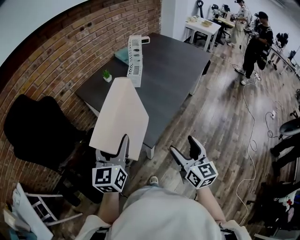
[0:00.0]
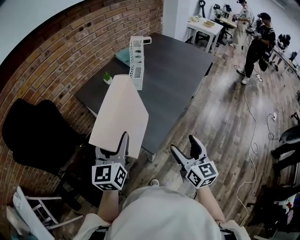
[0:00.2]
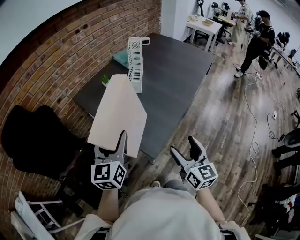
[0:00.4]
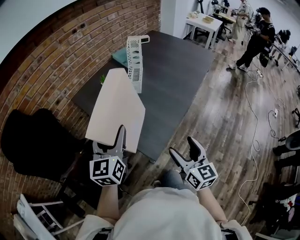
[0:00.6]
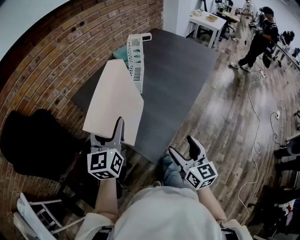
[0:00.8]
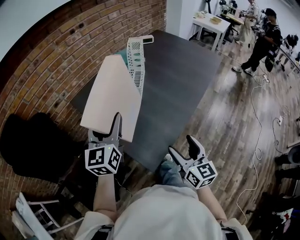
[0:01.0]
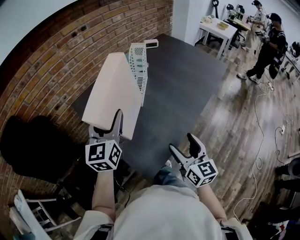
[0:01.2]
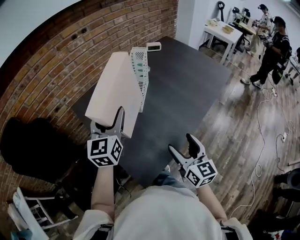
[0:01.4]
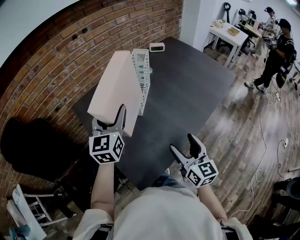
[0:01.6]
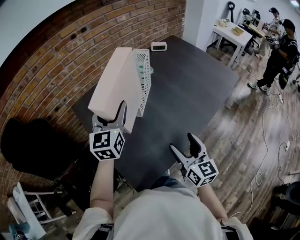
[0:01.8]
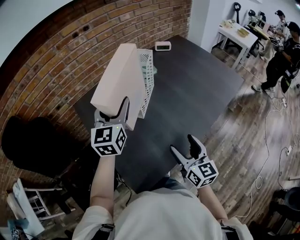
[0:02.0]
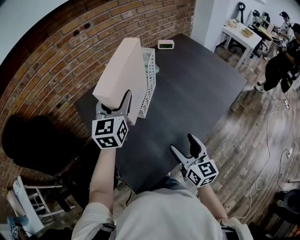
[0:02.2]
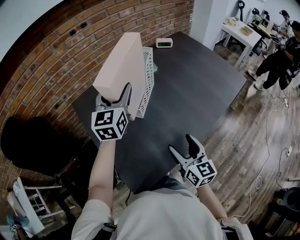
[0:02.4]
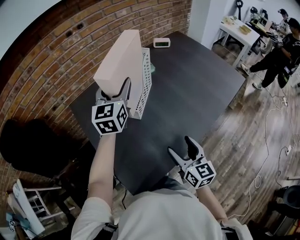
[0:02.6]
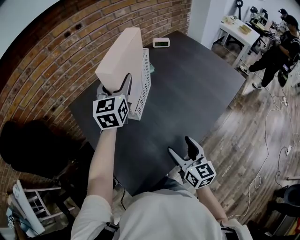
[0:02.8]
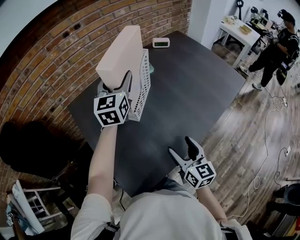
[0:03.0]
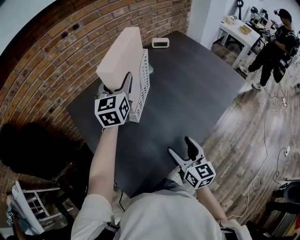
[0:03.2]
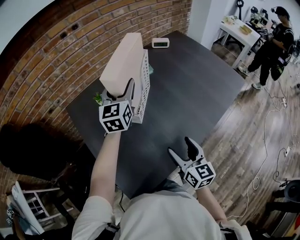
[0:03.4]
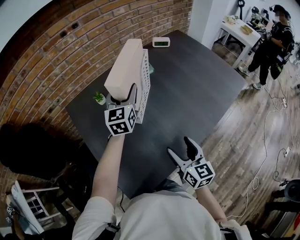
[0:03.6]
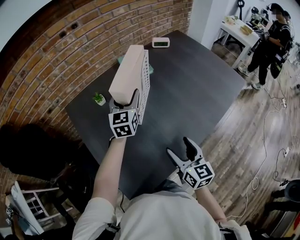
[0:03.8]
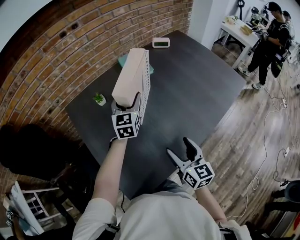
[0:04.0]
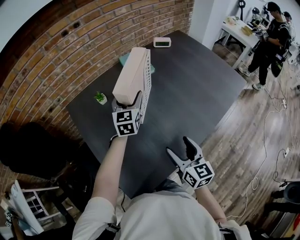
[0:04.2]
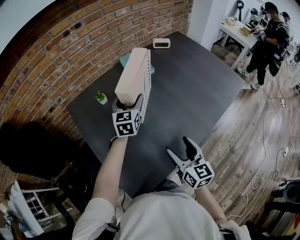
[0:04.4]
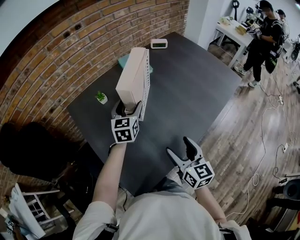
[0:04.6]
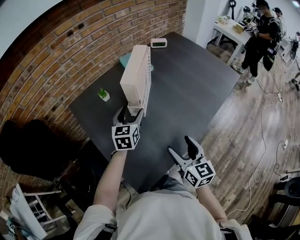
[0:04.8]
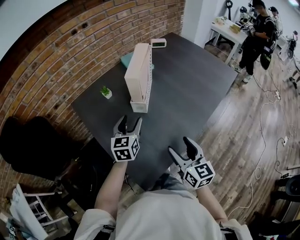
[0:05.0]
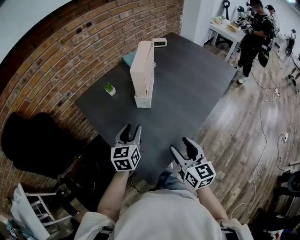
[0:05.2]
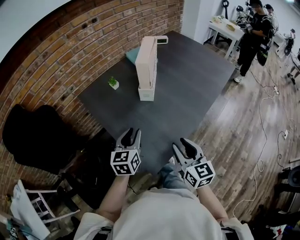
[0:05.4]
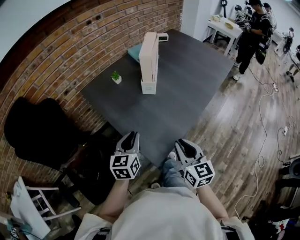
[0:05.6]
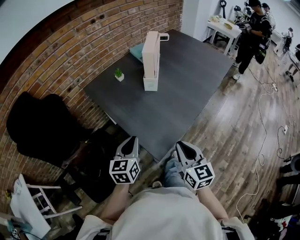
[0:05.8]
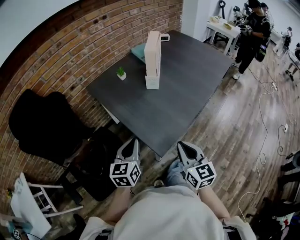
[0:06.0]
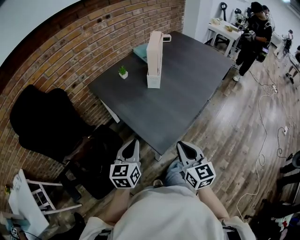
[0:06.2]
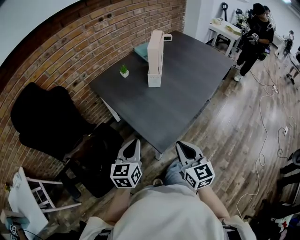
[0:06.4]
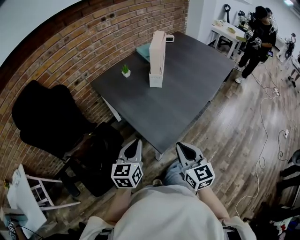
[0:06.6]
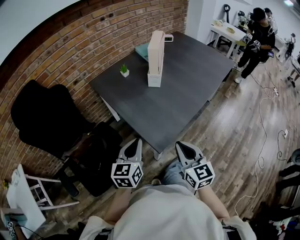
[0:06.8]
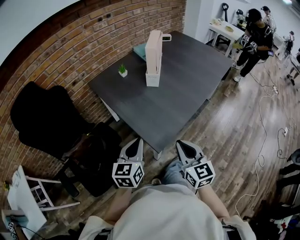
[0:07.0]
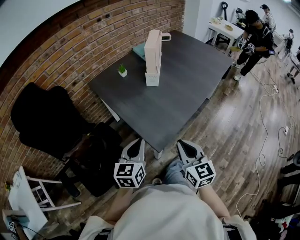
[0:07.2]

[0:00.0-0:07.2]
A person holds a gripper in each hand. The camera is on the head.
0:00.0 to 0:01.4: The grippers both shift forward by roughly 30 cm.
0:01.4 to 0:02.8: The right gripper heads forward, covering approximately 10 cm. The left gripper moves forward and to the right, some 20 cm.
0:02.8 to 0:04.4: The left gripper shifts approximately 15 cm downward.
0:04.4 to 0:05.8: The left gripper heads backward, covering about 40 cm, and closes, while the right gripper travels backward and to the left by roughly 30 cm, and closes.
0:05.8 to 0:07.2: The left gripper shifts about 5 cm backward.

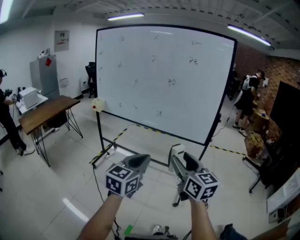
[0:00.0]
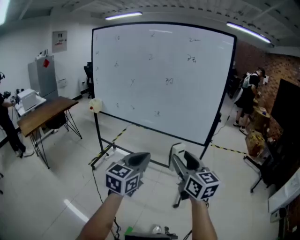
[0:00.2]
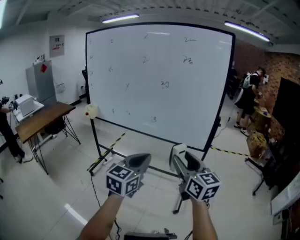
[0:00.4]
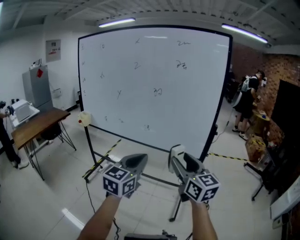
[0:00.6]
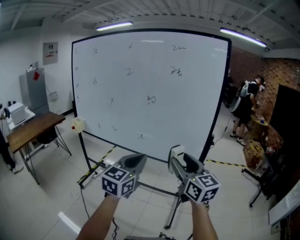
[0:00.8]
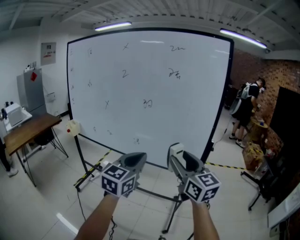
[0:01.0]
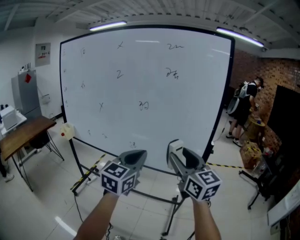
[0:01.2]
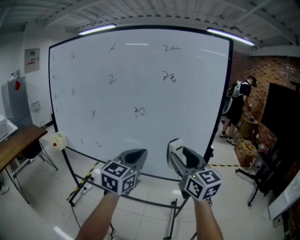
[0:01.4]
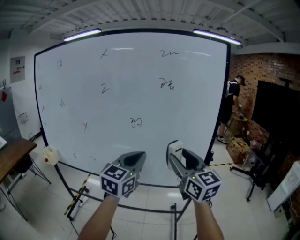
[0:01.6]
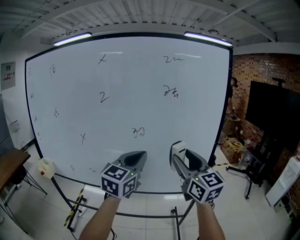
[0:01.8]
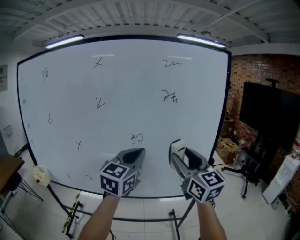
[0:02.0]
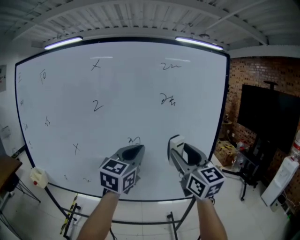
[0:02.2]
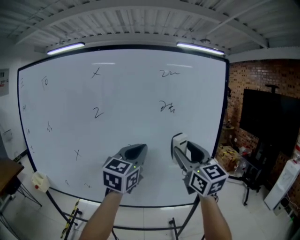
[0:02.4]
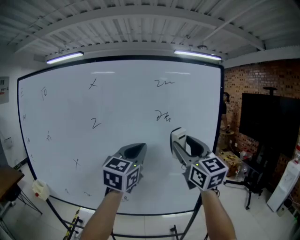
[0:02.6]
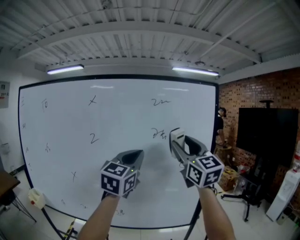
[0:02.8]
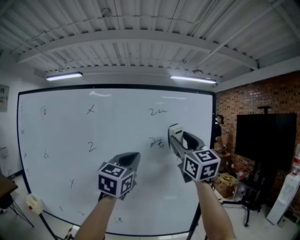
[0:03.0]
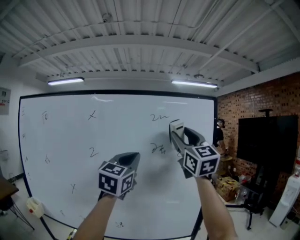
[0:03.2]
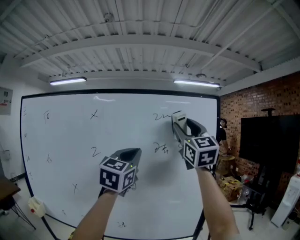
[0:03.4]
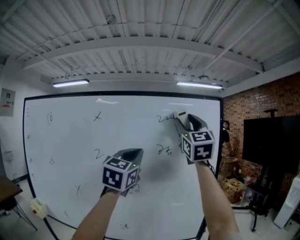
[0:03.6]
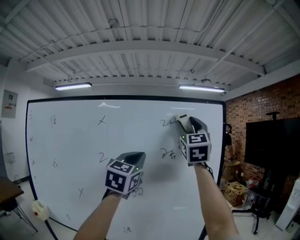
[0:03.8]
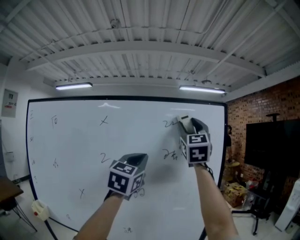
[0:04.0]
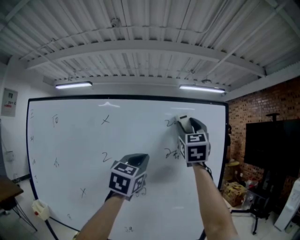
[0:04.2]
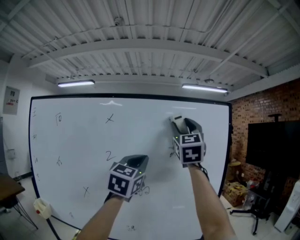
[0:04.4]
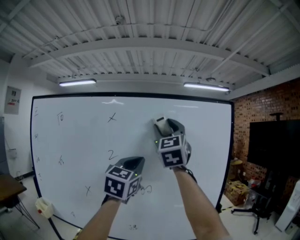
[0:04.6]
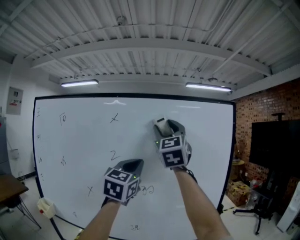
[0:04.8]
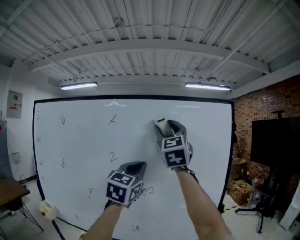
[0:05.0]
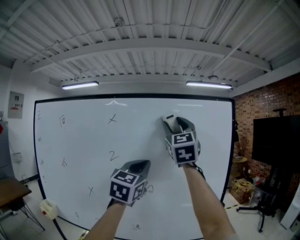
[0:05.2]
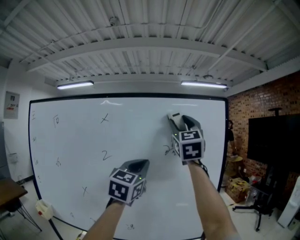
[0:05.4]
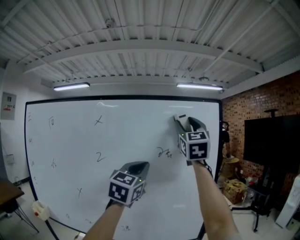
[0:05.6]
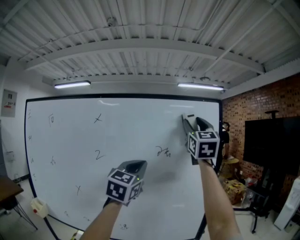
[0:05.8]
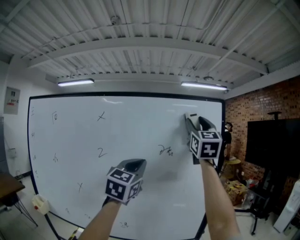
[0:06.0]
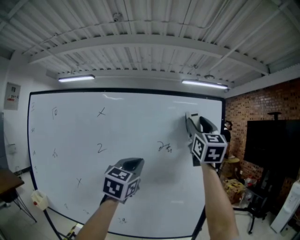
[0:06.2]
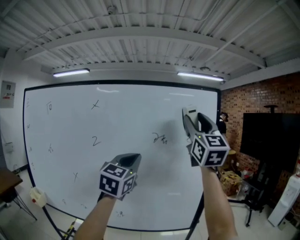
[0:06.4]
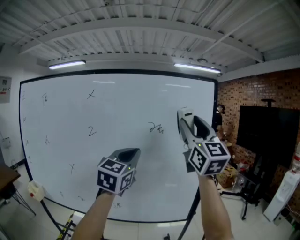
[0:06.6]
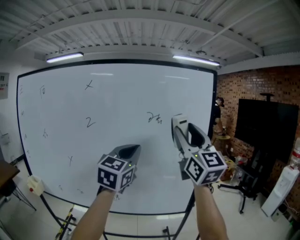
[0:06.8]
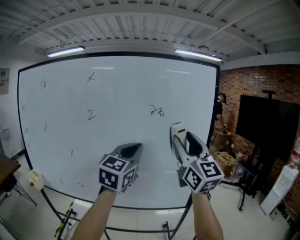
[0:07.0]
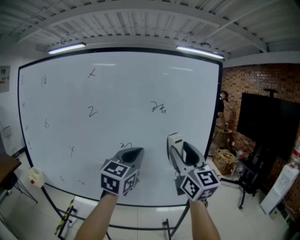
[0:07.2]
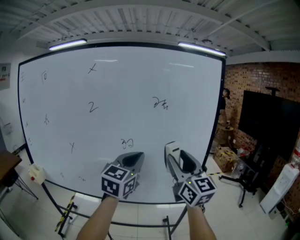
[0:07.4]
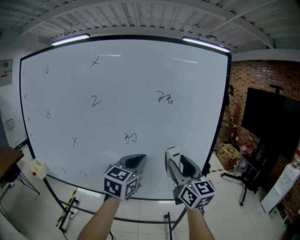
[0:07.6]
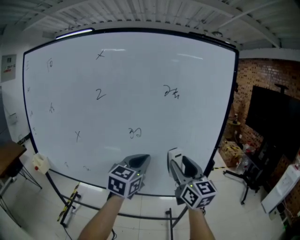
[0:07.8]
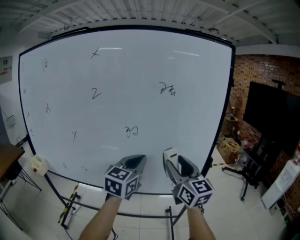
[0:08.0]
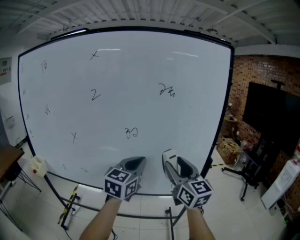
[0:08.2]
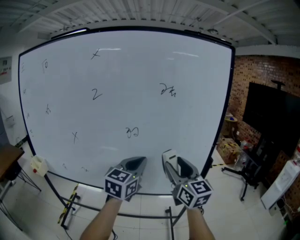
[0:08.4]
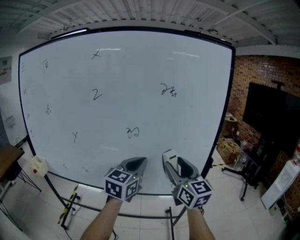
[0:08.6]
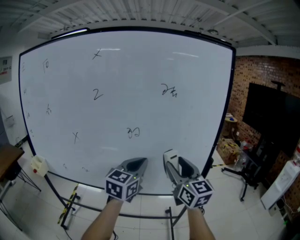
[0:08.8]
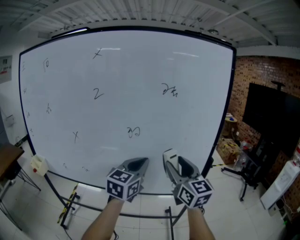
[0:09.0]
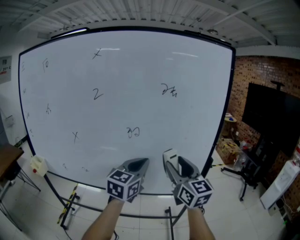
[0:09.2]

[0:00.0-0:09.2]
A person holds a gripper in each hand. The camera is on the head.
0:00.0 to 0:01.6: The two grippers go about 40 cm forward.
0:01.6 to 0:03.0: The right gripper is displaced upward by some 25 cm, and rotates roughly 30 degrees; the left gripper goes approximately 25 cm upward and forward.
0:03.0 to 0:04.6: The left gripper is displaced to the left by about 5 cm; the right gripper travels to the left and upward by some 15 cm.
0:04.6 to 0:06.2: The right gripper moves to the right, approximately 20 cm, while the left gripper goes about 5 cm to the right.
0:06.2 to 0:07.6: The right gripper is displaced downward by about 35 cm, and swivels roughly 30 degrees, while the left gripper is displaced downward by about 15 cm.
0:07.6 to 0:09.2: The grippers move only a little.

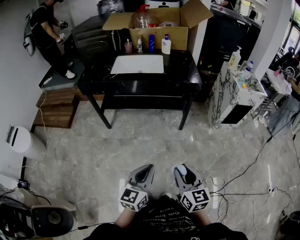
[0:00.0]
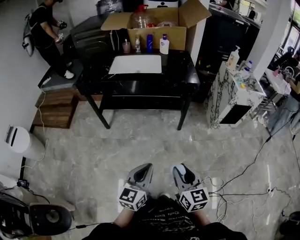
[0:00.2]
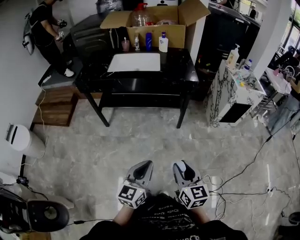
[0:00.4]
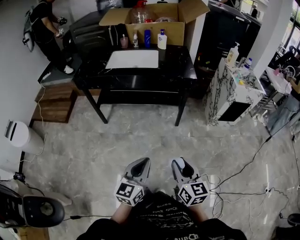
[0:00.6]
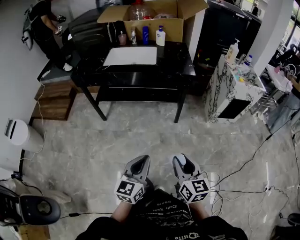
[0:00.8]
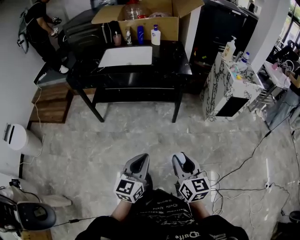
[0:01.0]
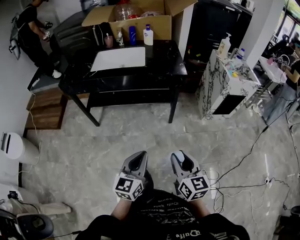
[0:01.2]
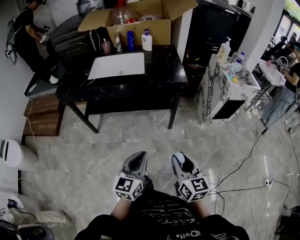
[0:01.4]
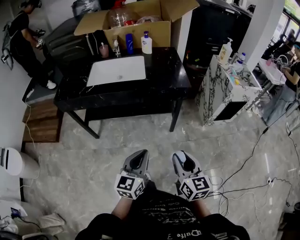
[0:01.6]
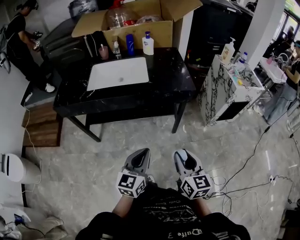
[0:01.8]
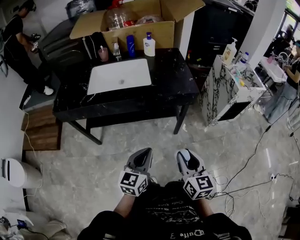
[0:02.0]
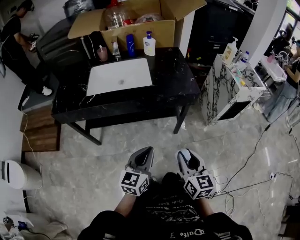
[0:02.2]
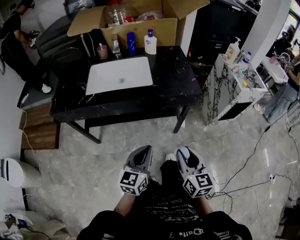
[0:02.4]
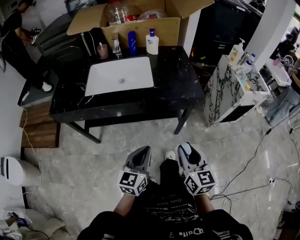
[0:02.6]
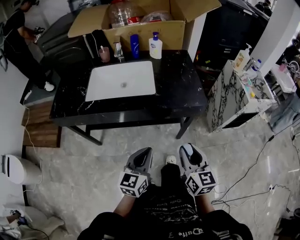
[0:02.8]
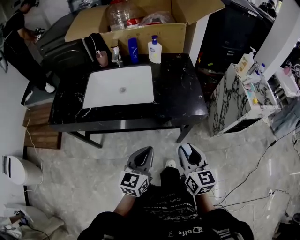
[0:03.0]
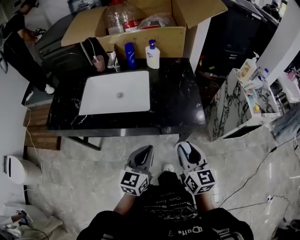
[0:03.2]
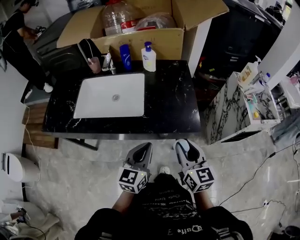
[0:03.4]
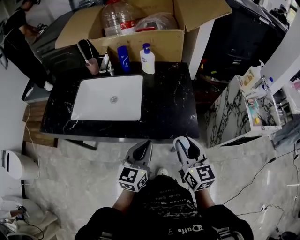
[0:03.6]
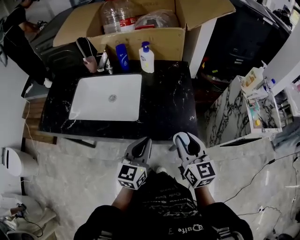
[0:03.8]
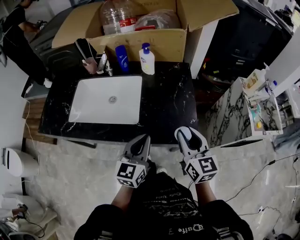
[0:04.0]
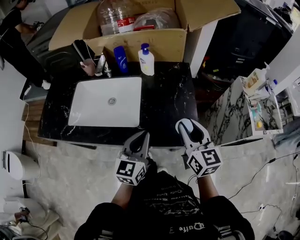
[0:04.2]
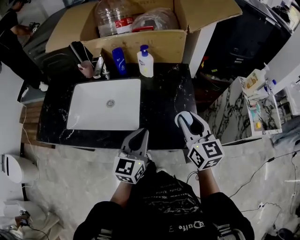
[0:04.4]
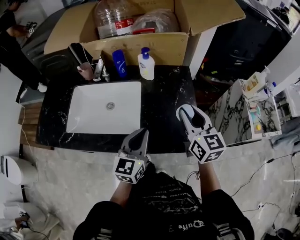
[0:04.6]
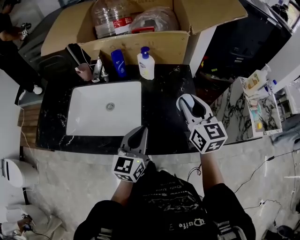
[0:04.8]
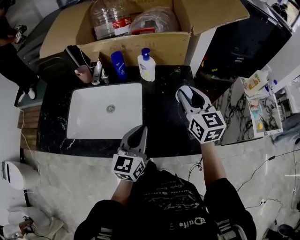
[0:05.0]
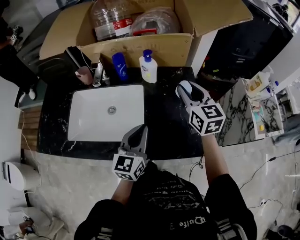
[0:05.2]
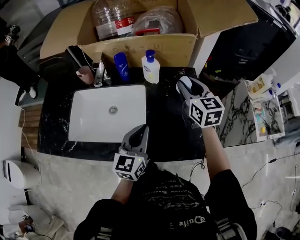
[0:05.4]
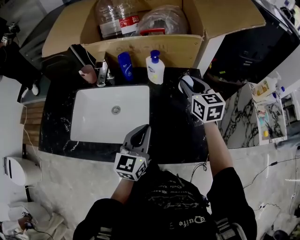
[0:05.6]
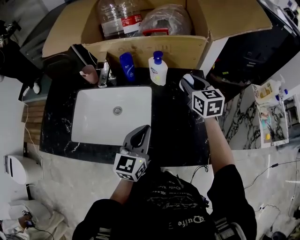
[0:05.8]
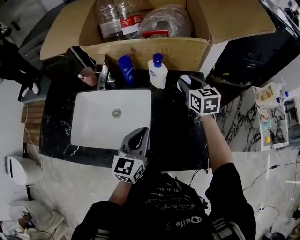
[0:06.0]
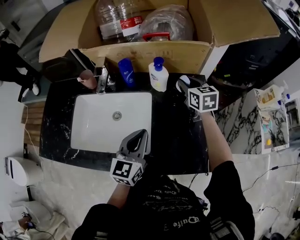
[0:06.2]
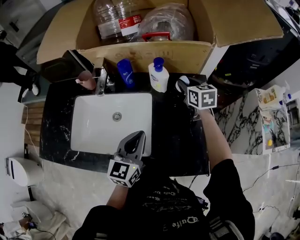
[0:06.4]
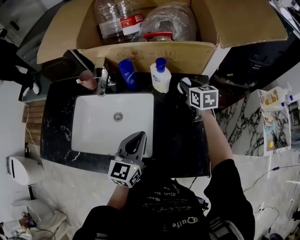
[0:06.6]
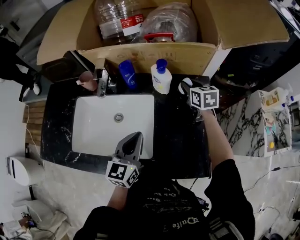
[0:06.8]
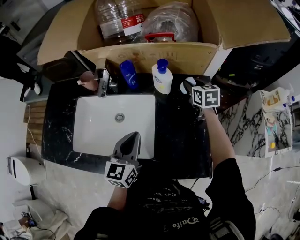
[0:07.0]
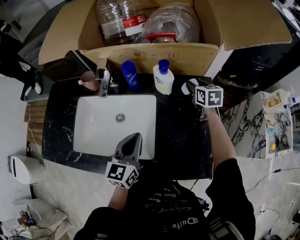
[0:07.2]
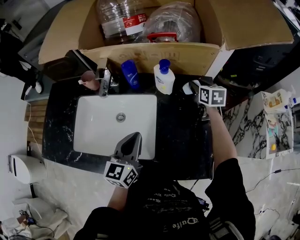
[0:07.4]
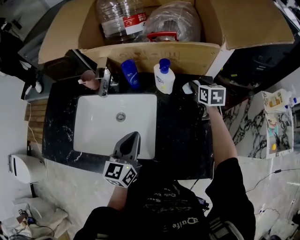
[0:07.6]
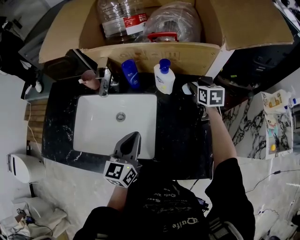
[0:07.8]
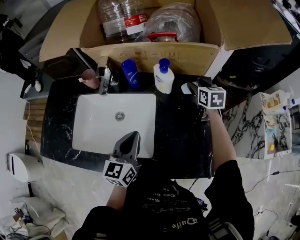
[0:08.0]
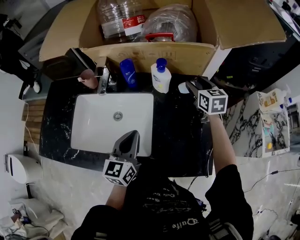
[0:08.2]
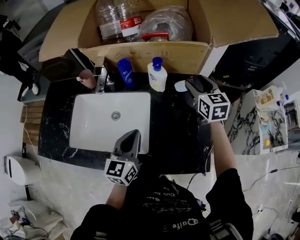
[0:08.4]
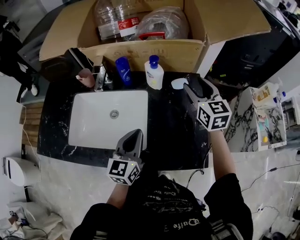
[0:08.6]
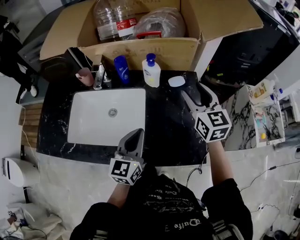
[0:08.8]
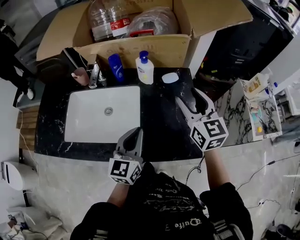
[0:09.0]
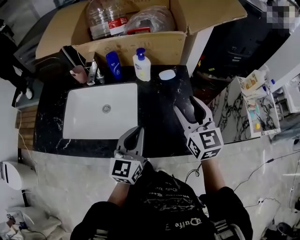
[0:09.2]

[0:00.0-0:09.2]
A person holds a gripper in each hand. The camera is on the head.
0:00.0 to 0:01.6: Both grippers move forward, approximately 20 cm.
0:01.6 to 0:03.0: The two grippers go about 25 cm forward.
0:03.0 to 0:04.6: Both grippers move forward, some 30 cm.
0:04.6 to 0:06.2: The right gripper goes roughly 25 cm forward; the left gripper travels forward and to the left by about 10 cm.
0:06.2 to 0:07.6: The left gripper moves roughly 5 cm. The right gripper is displaced downward by approximately 5 cm.
0:07.6 to 0:09.2: The left gripper goes some 15 cm backward and to the right. Meanwhile the right gripper is displaced backward and upward by some 30 cm, and rotates roughly 30 degrees.
